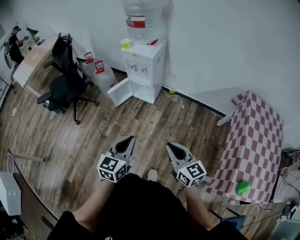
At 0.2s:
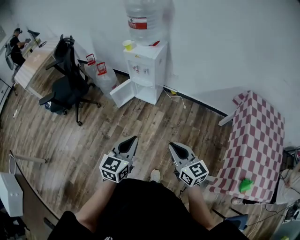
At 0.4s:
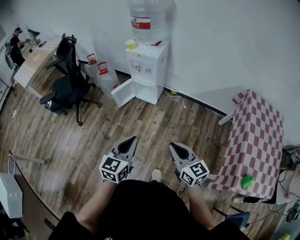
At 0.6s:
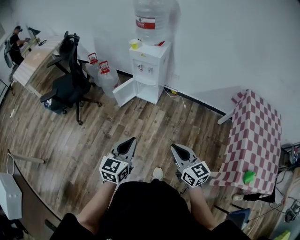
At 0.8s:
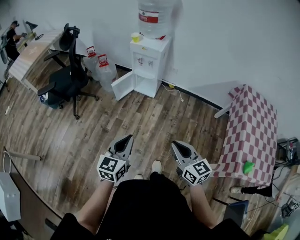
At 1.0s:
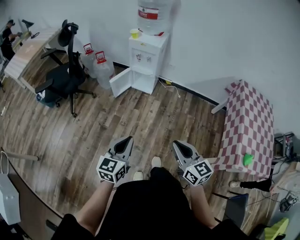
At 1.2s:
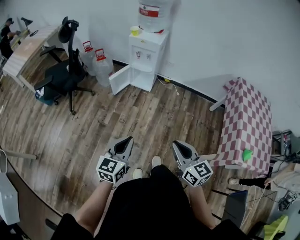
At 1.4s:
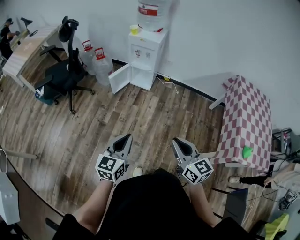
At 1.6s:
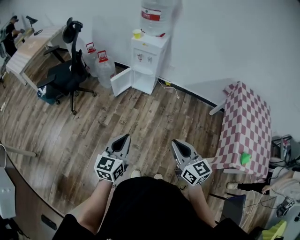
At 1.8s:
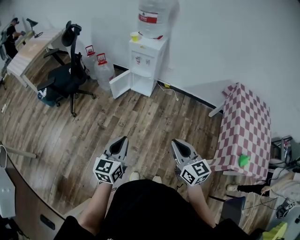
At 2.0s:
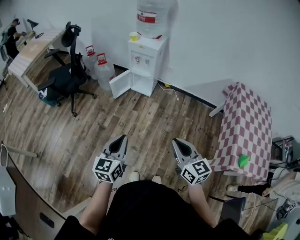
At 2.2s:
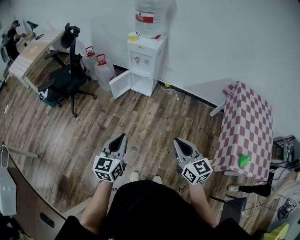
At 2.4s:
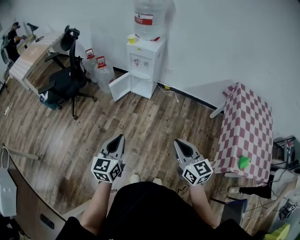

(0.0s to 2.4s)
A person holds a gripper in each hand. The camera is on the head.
0.0s - 1.2s: The left gripper is displaced to the left and backward by roughly 20 cm. The right gripper moves backward and to the left, some 20 cm.
1.2s - 2.4s: The right gripper goes approximately 5 cm to the right.

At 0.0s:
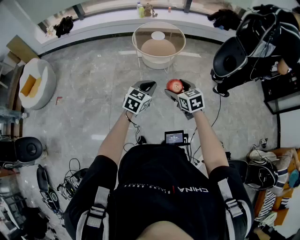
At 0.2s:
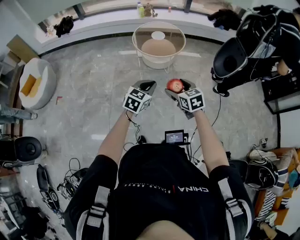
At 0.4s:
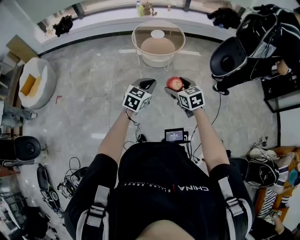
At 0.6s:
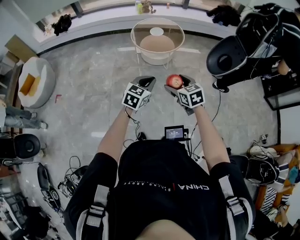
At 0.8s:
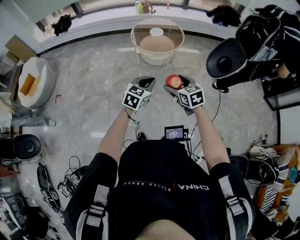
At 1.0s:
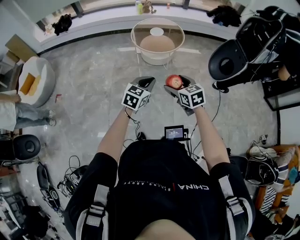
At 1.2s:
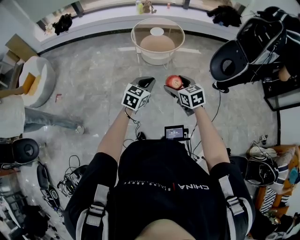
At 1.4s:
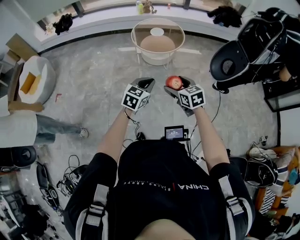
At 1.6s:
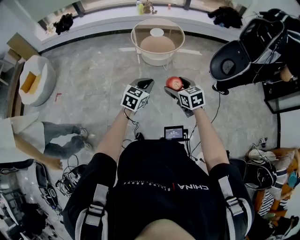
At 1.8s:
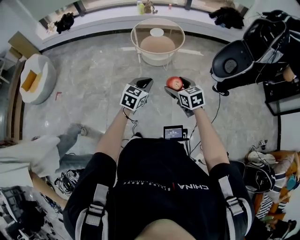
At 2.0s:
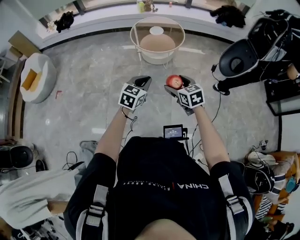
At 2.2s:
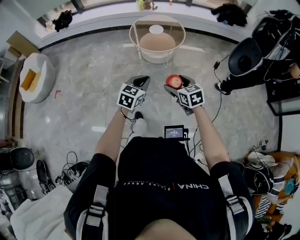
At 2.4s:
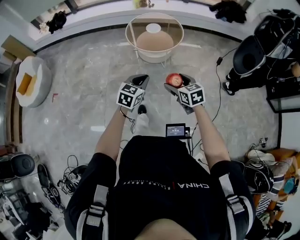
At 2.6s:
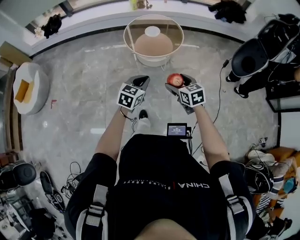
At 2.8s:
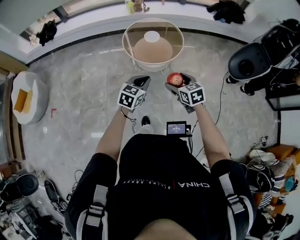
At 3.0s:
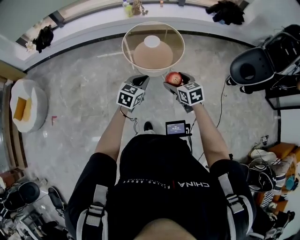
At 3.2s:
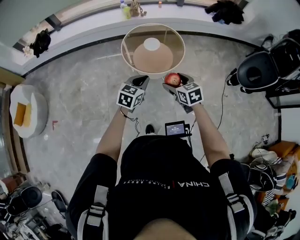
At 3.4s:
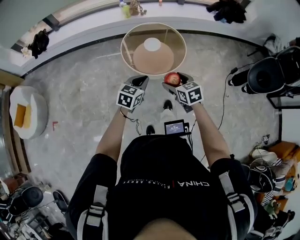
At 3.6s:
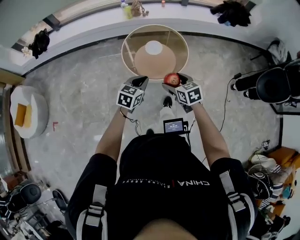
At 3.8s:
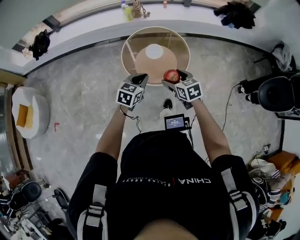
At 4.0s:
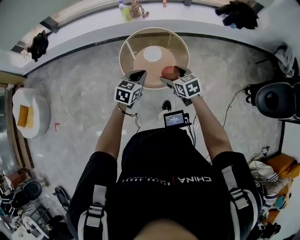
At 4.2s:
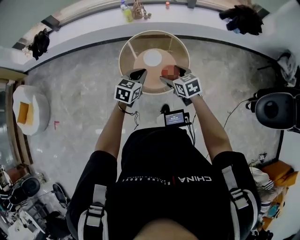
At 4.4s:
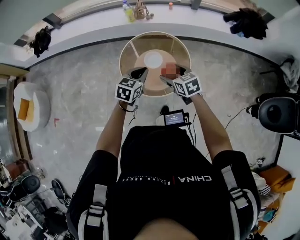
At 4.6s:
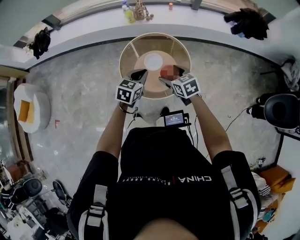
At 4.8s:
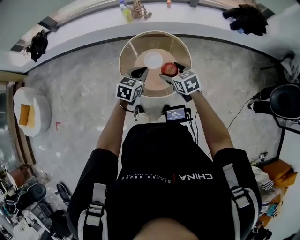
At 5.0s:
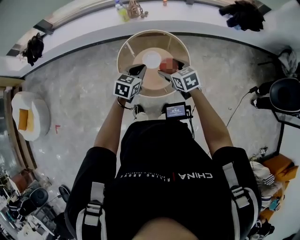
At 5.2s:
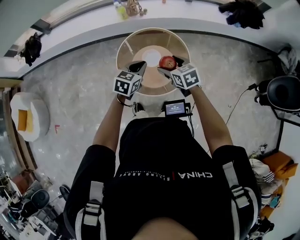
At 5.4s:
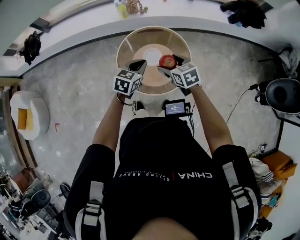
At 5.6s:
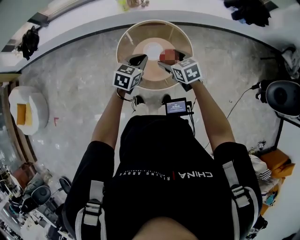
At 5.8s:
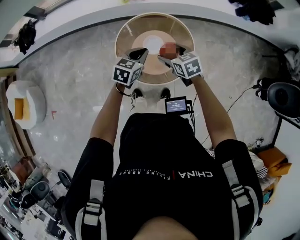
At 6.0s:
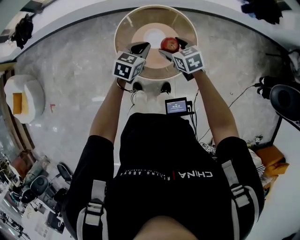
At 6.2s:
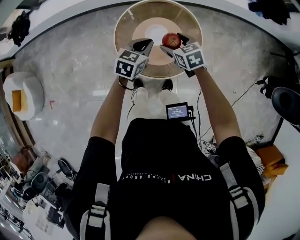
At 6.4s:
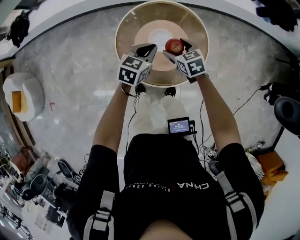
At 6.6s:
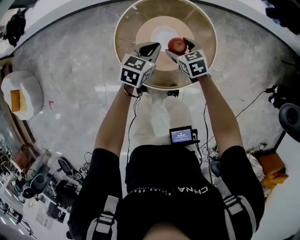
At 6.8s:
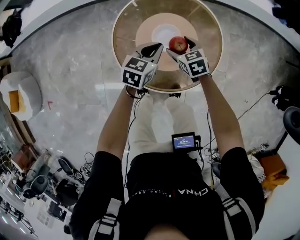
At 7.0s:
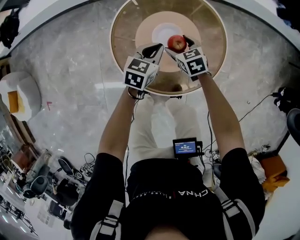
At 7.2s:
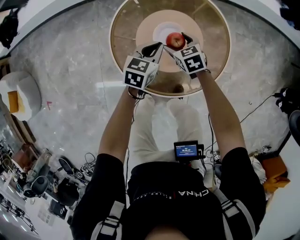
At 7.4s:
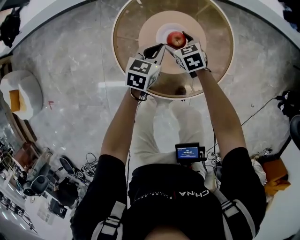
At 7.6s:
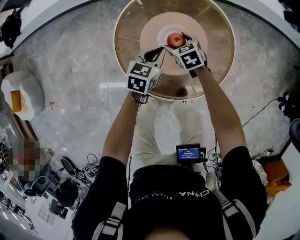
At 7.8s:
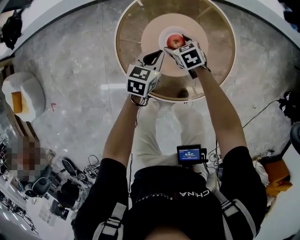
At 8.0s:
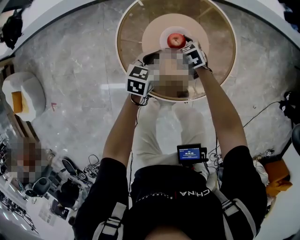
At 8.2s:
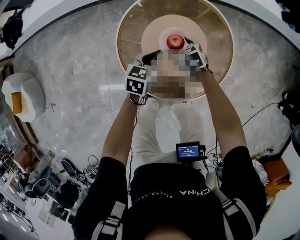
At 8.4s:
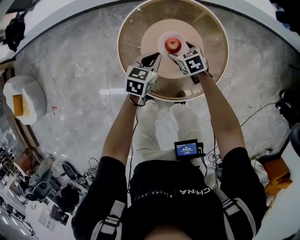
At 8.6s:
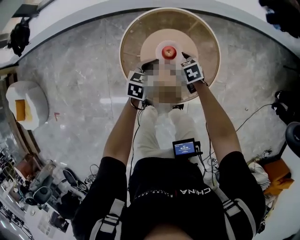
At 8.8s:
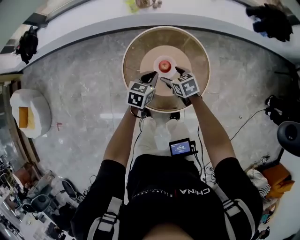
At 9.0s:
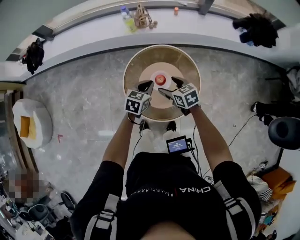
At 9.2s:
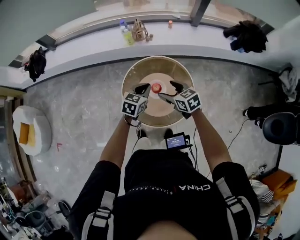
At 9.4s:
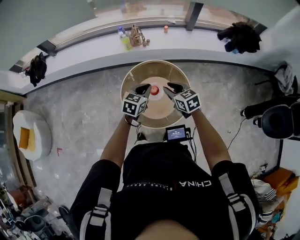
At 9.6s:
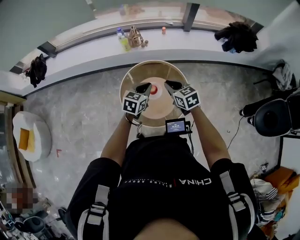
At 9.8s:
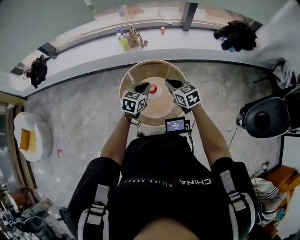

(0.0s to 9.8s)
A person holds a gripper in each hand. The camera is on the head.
0.0s - 1.4s: The grippers make only small movements.
1.4s - 2.8s: The grippers both shift forward by about 30 cm.
2.8s - 4.2s: The pair of grippers is taken forward, roughly 50 cm.
4.2s - 5.6s: Both grippers travel together forward, about 15 cm.
5.6s - 7.0s: Both grippers move downward, about 35 cm.
8.4s - 9.8s: The two grippers go some 40 cm upward. The right gripper turns by about 30 degrees, and closes up.

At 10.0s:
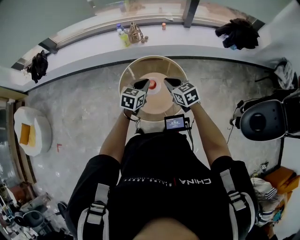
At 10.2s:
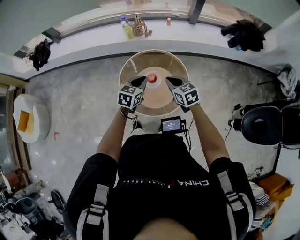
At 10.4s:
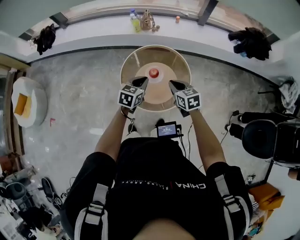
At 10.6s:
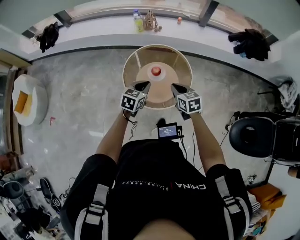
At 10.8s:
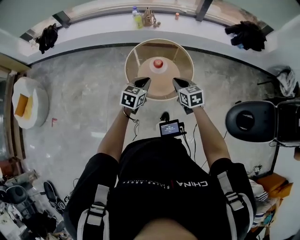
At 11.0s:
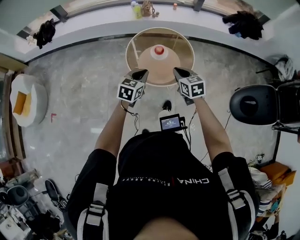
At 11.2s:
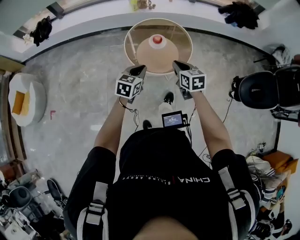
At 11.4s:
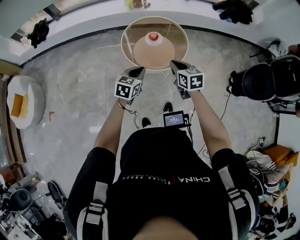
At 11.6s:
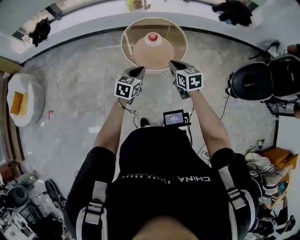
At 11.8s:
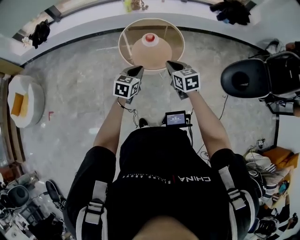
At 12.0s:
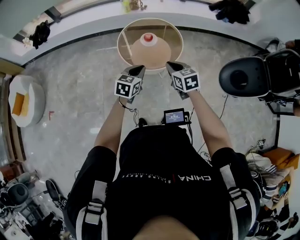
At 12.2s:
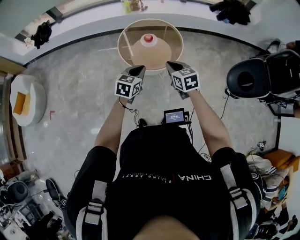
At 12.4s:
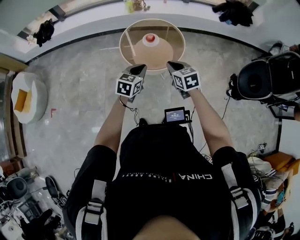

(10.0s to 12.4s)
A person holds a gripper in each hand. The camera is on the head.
10.0s - 11.2s: The two grippers go roughly 35 cm backward.
11.2s - 12.4s: The right gripper heads backward and to the right, covering about 10 cm; the left gripper travels to the right and backward by approximately 10 cm.

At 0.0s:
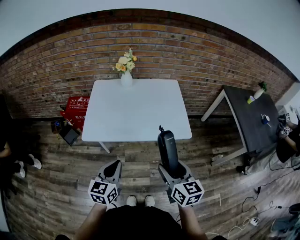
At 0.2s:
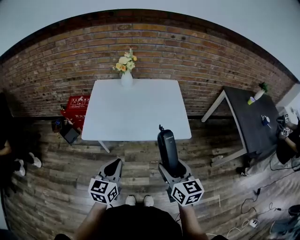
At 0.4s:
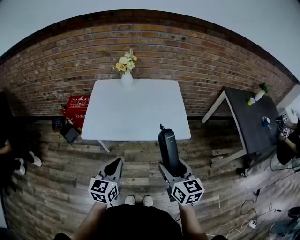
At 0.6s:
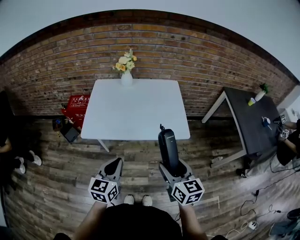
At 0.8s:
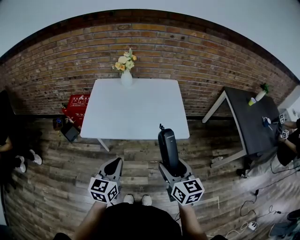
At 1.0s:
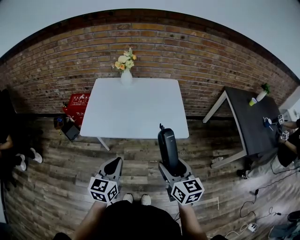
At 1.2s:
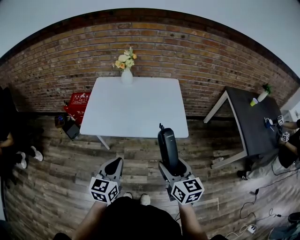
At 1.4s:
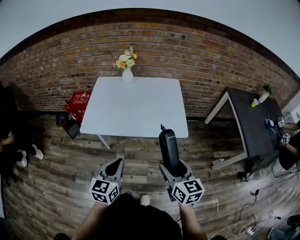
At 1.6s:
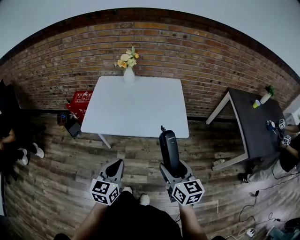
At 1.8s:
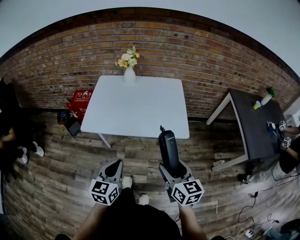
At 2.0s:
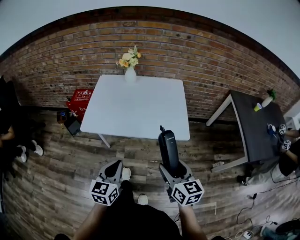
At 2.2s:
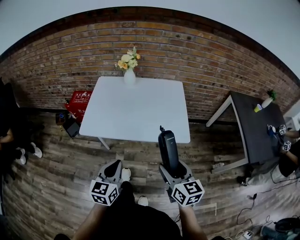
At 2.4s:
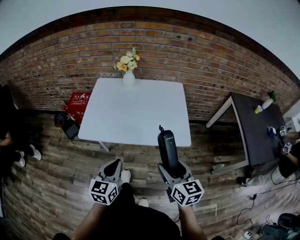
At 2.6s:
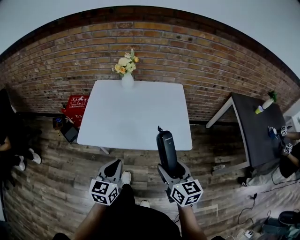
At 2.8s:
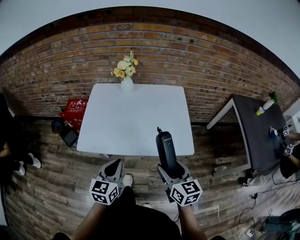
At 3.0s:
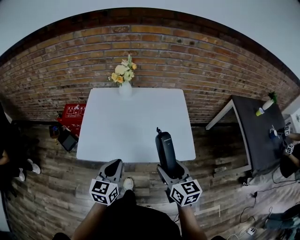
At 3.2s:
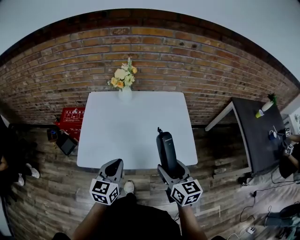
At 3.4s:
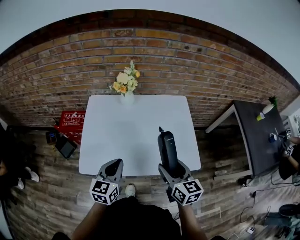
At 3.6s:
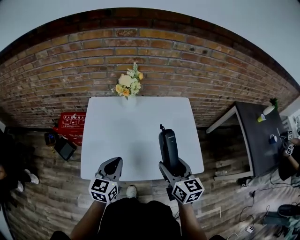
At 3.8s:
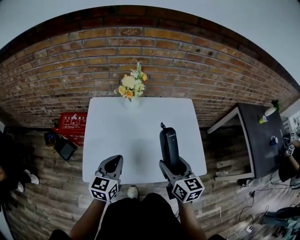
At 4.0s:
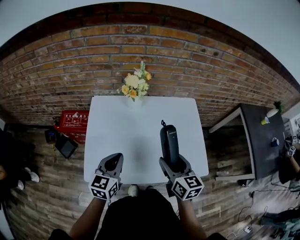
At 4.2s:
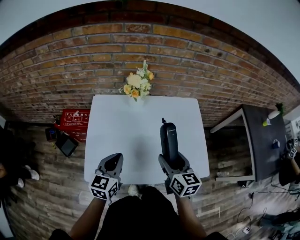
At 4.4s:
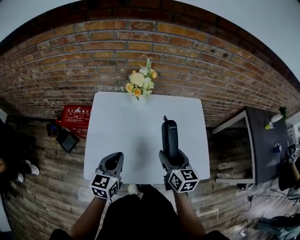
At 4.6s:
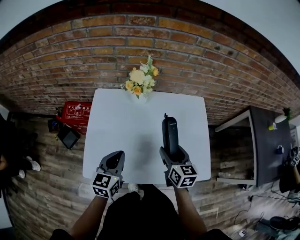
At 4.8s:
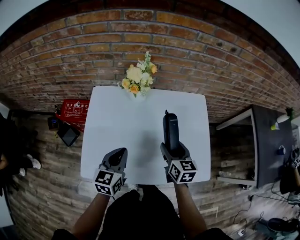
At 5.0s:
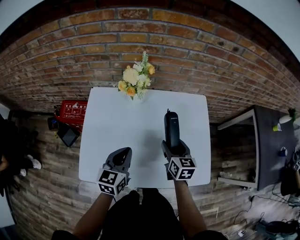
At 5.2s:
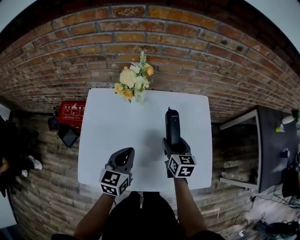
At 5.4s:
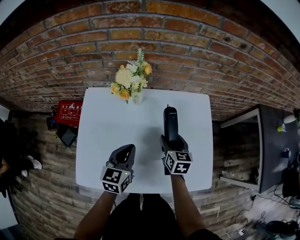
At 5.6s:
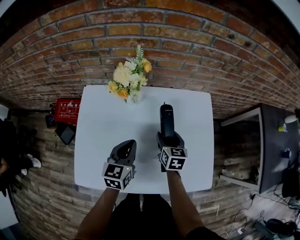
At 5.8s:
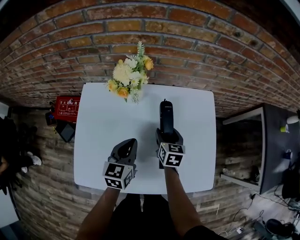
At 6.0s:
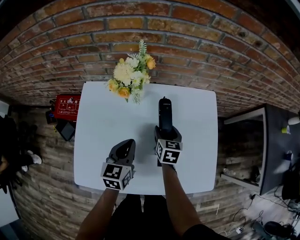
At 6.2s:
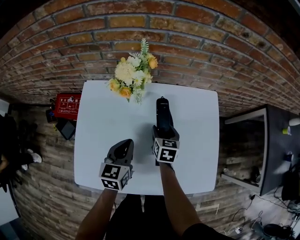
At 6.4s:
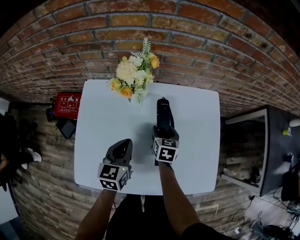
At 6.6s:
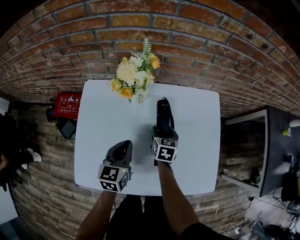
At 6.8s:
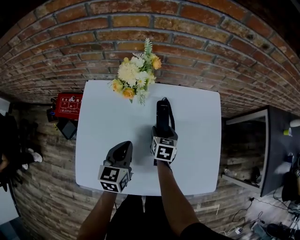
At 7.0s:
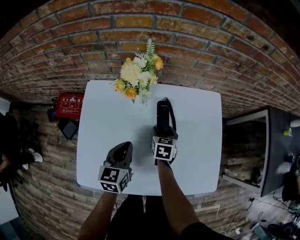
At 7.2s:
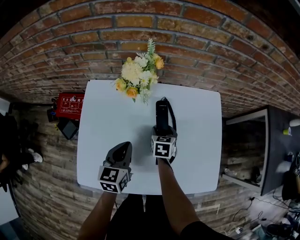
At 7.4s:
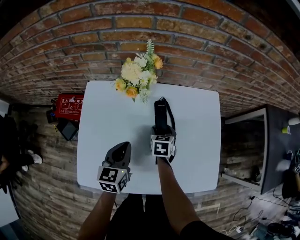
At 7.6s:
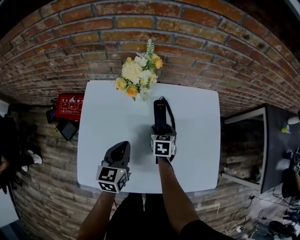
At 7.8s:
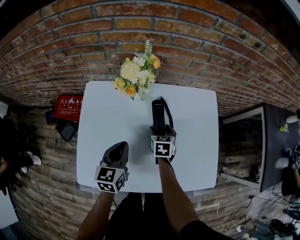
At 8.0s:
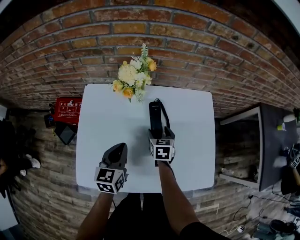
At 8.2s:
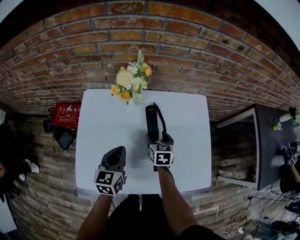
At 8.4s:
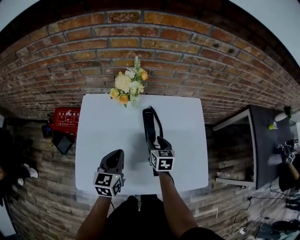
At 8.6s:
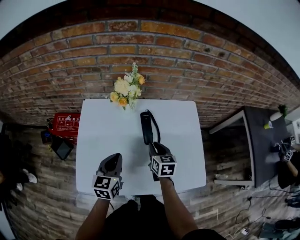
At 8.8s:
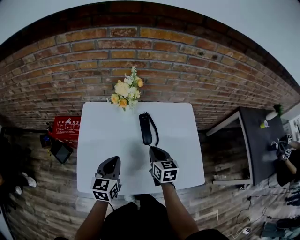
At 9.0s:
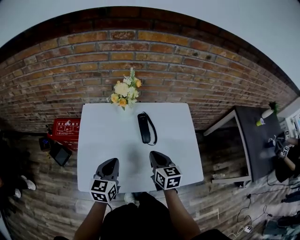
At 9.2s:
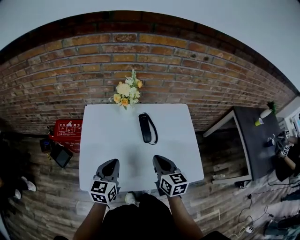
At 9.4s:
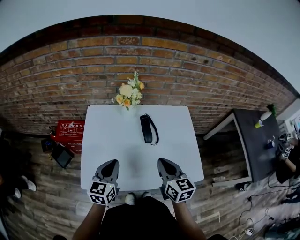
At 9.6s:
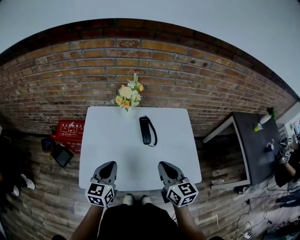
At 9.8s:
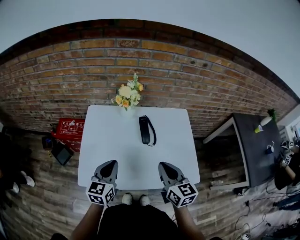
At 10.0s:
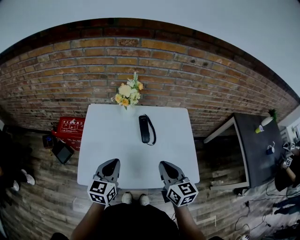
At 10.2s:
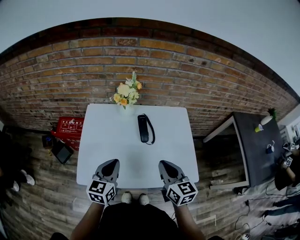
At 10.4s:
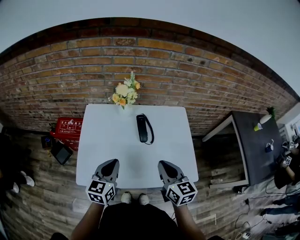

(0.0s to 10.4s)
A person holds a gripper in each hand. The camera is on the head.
0.0s - 1.4s: Both grippers travel together to the right, some 5 cm.
1.4s - 3.0s: The two grippers go roughly 20 cm forward.
3.0s - 4.4s: Both grippers move forward and to the left, some 20 cm.
4.4s - 6.0s: The left gripper moves forward, downward and to the right, approximately 20 cm, while the right gripper moves forward and downward, roughly 25 cm.
6.0s - 7.4s: The right gripper moves approximately 5 cm.
7.4s - 9.0s: The right gripper moves upward and backward, some 25 cm, turns by approximately 20 degrees, and closes up. The left gripper moves backward and upward, some 10 cm.
9.0s - 10.4s: The right gripper is displaced upward and backward by approximately 15 cm. The left gripper moves about 5 cm.
